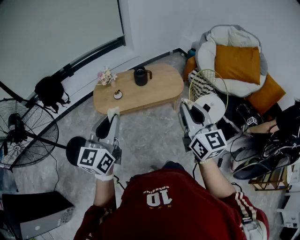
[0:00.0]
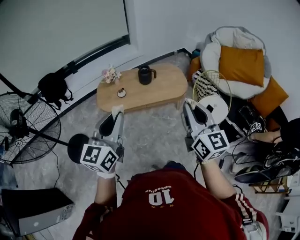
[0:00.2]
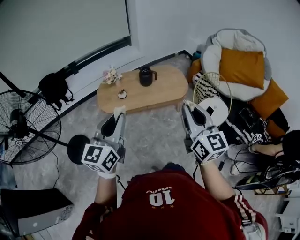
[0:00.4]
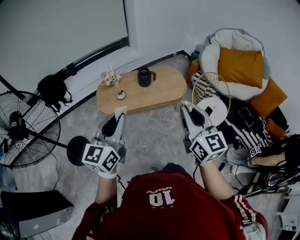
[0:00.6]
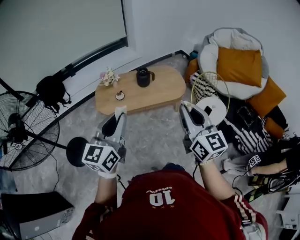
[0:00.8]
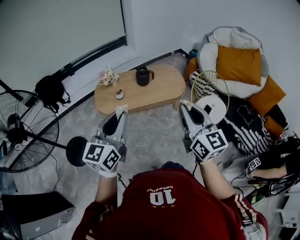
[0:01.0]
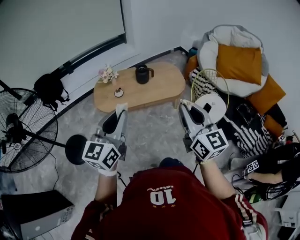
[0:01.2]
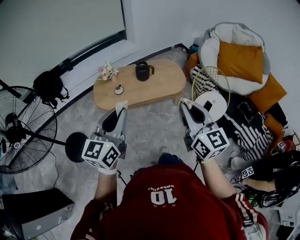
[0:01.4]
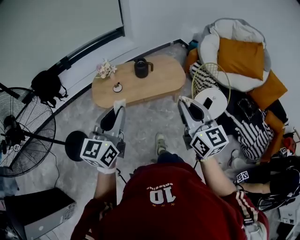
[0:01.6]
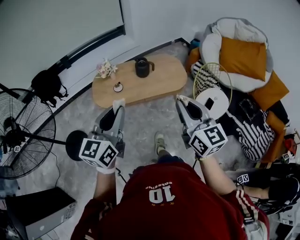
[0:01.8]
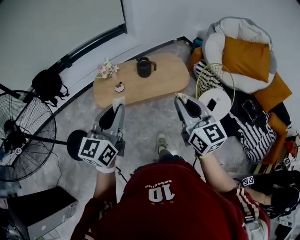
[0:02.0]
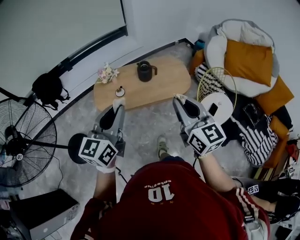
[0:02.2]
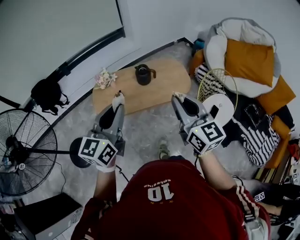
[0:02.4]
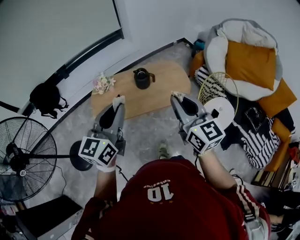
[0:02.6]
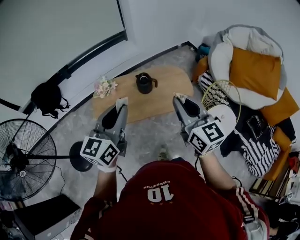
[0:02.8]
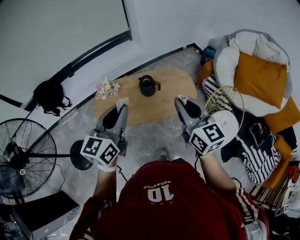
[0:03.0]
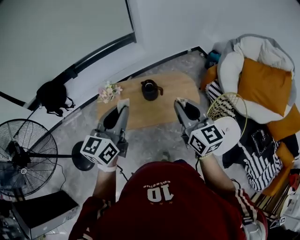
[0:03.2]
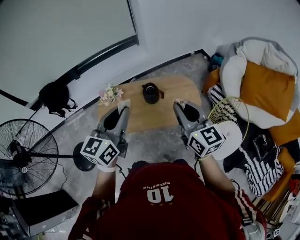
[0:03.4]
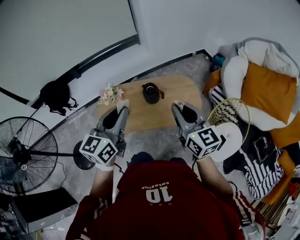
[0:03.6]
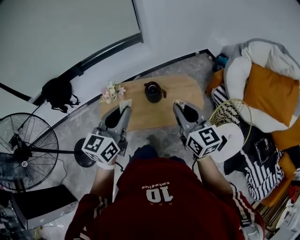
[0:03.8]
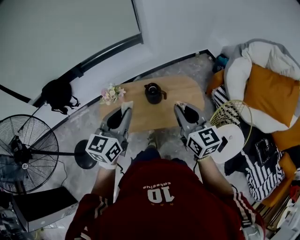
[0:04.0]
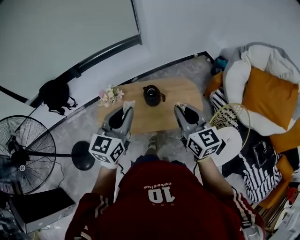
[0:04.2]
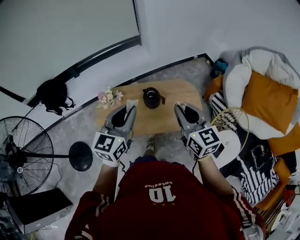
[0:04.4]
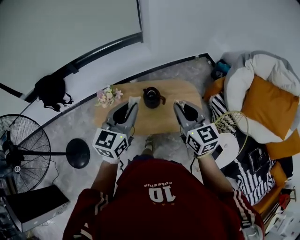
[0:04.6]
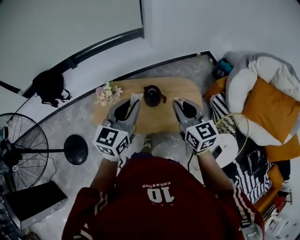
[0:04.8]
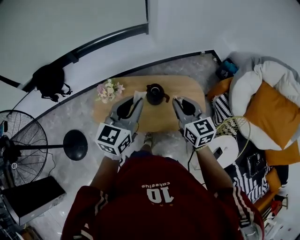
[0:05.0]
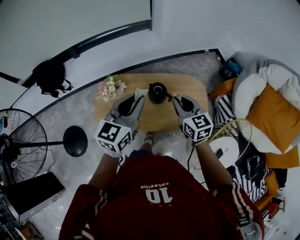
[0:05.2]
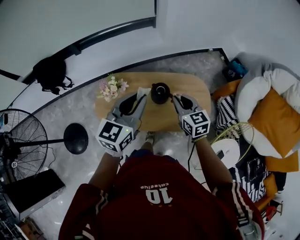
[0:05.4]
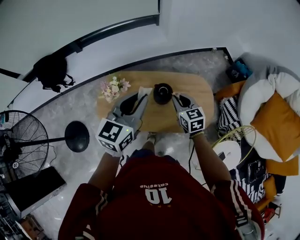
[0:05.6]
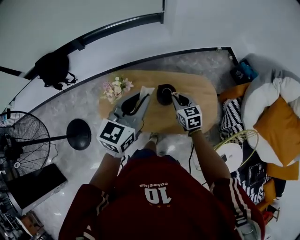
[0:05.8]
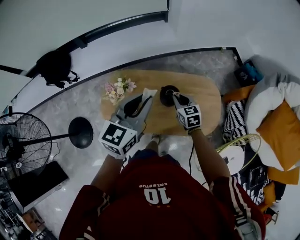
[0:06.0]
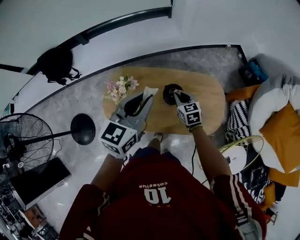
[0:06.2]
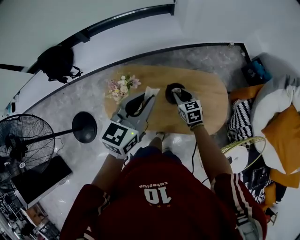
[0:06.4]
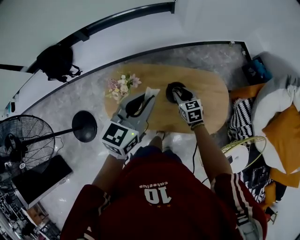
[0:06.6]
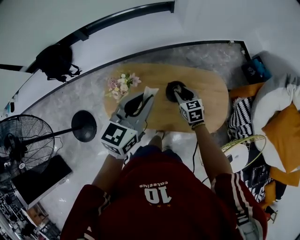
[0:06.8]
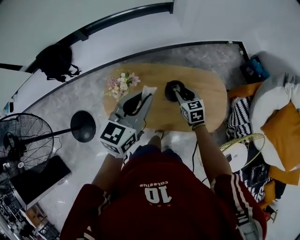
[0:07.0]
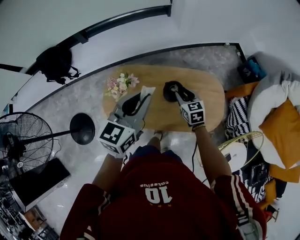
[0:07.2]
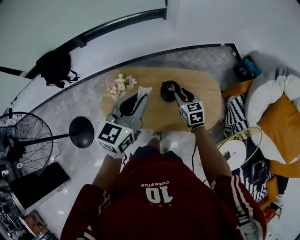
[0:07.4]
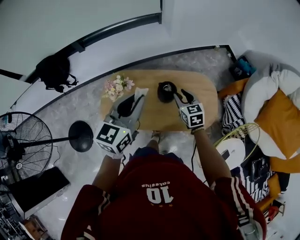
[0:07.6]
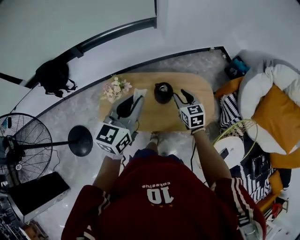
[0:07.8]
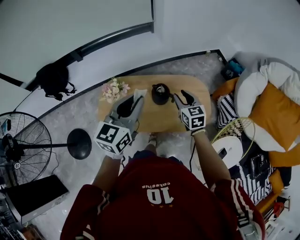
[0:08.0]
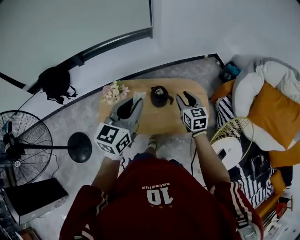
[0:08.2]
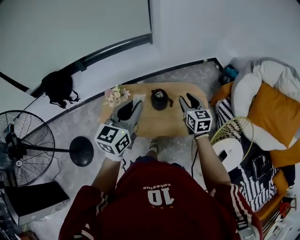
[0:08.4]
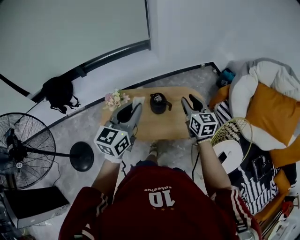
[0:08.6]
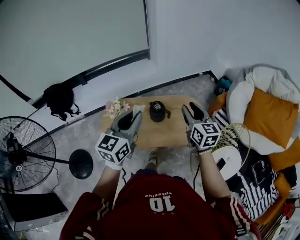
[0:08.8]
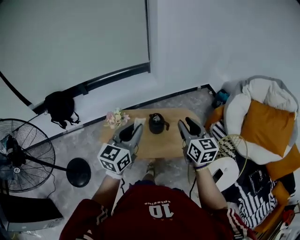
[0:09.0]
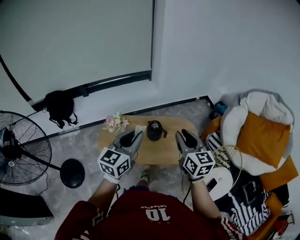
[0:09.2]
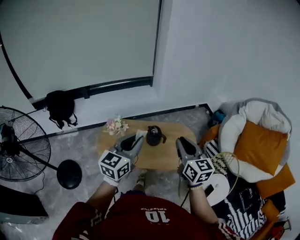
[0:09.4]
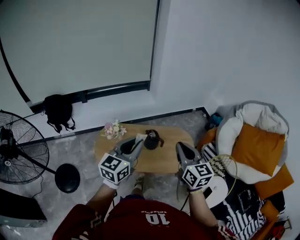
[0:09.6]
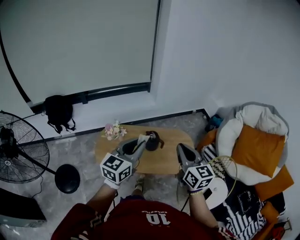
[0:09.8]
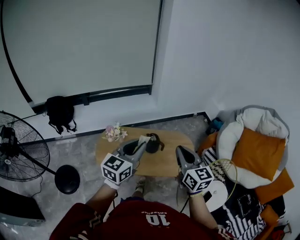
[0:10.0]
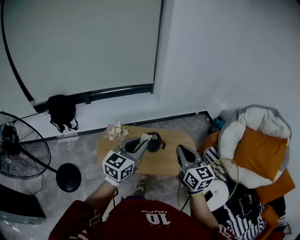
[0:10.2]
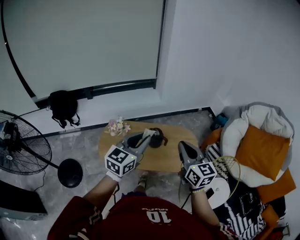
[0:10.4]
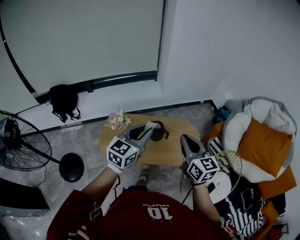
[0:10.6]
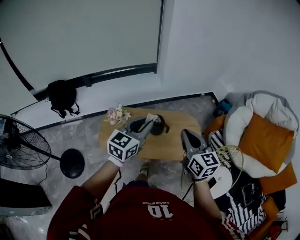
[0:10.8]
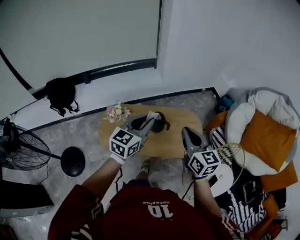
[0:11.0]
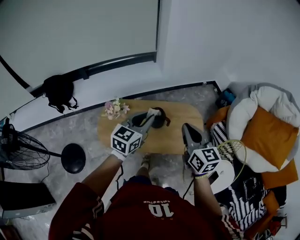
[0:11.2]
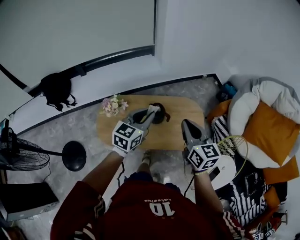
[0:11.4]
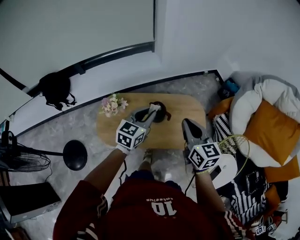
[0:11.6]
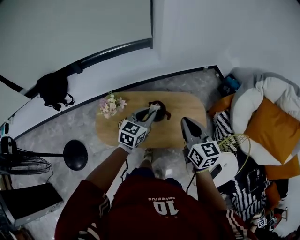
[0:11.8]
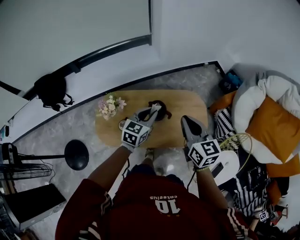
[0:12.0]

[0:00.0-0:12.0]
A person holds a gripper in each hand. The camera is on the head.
0:00.0 to 0:01.6: There are only small adjustments of the grippers.
0:01.6 to 0:03.0: Both grippers travel together forward, about 30 cm.
0:03.0 to 0:04.4: The two grippers go about 10 cm forward.
0:04.4 to 0:06.0: The left gripper shifts approximately 20 cm forward and downward. Meanwhile the right gripper heads downward and forward, covering roughly 40 cm, and turns by approximately 30 degrees.
0:06.0 to 0:07.6: The left gripper changes place by some 5 cm, while the right gripper moves about 5 cm, and opens.
0:07.6 to 0:09.0: The right gripper travels upward and backward by some 30 cm, and rotates roughly 30 degrees. Meanwhile the left gripper moves backward and upward, roughly 15 cm.
0:09.0 to 0:10.4: The right gripper heads backward, covering some 5 cm, and closes up.
0:10.4 to 0:12.0: The right gripper heads forward and downward, covering approximately 20 cm; the left gripper goes some 30 cm downward and forward.

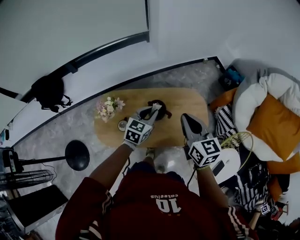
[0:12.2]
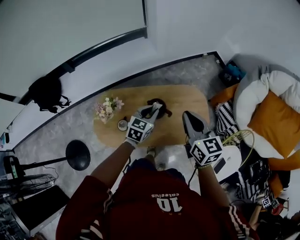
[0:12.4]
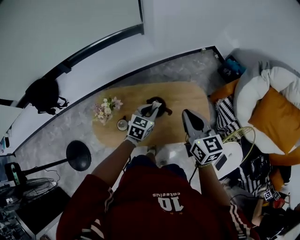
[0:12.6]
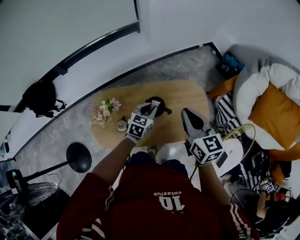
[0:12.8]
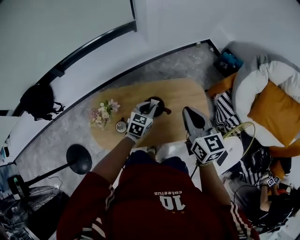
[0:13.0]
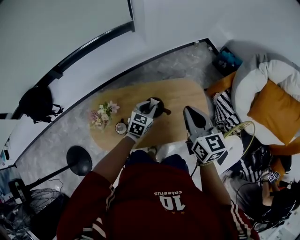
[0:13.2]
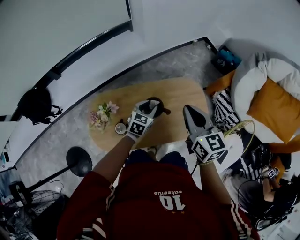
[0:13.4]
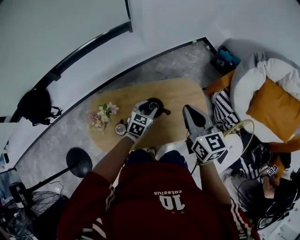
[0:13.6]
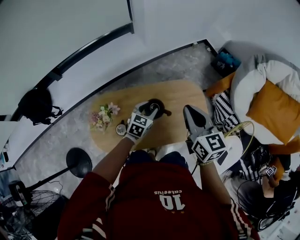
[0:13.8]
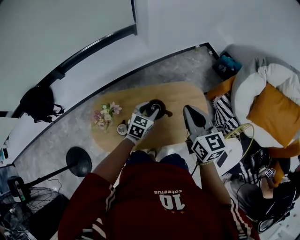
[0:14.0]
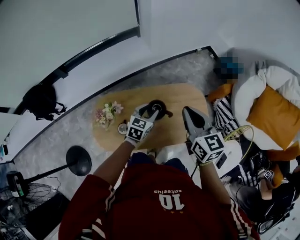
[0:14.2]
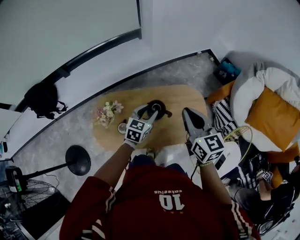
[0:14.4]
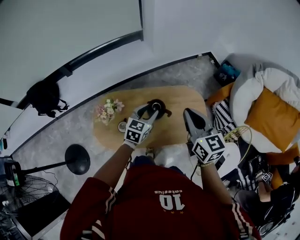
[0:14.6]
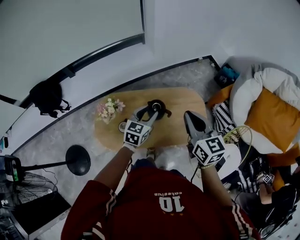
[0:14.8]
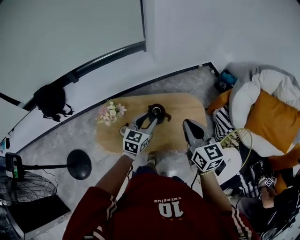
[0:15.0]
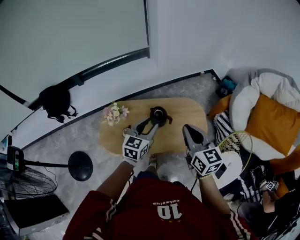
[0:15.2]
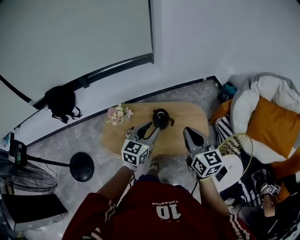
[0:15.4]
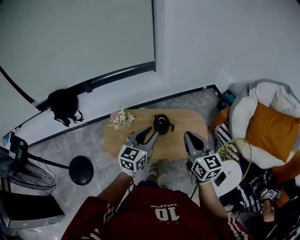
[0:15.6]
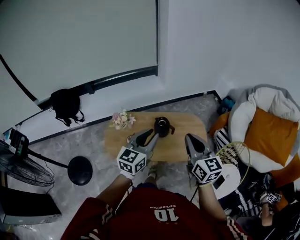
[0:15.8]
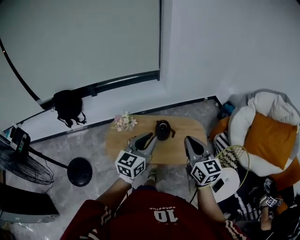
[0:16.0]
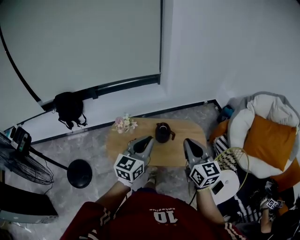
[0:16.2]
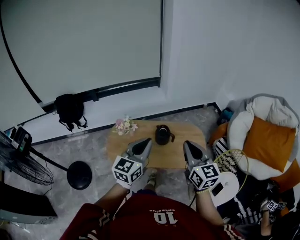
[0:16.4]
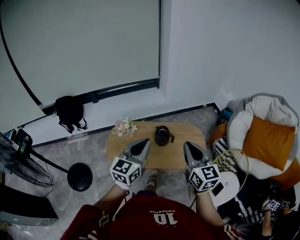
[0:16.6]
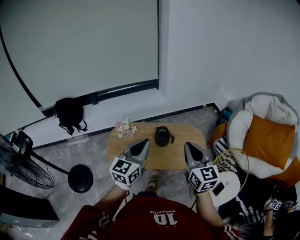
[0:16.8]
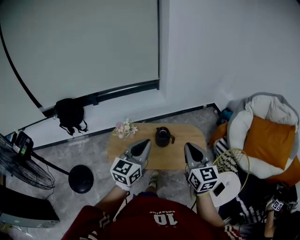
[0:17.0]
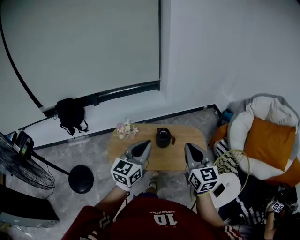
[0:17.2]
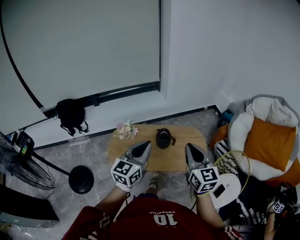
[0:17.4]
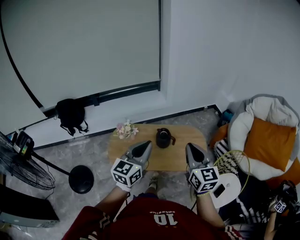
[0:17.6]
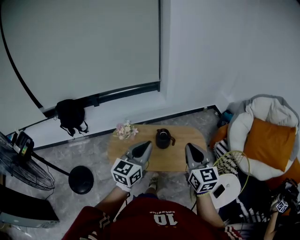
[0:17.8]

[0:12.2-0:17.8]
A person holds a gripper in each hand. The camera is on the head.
0:12.2 to 0:13.6: The right gripper shifts some 5 cm forward. The left gripper shifts some 15 cm downward and forward, and opens up.
0:13.6 to 0:15.0: The right gripper is displaced backward by some 15 cm, while the left gripper is displaced upward and backward by some 20 cm, and changes its angle by some 20 degrees.
0:15.0 to 0:16.4: The left gripper is displaced backward and upward by roughly 25 cm, and closes its fingers; the right gripper travels backward and upward by about 15 cm.
0:16.4 to 0:17.8: There are only small adjustments of the grippers.

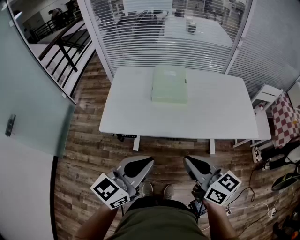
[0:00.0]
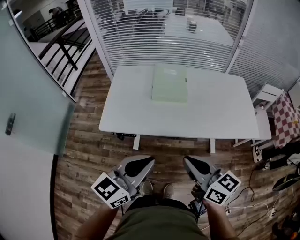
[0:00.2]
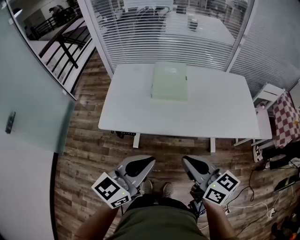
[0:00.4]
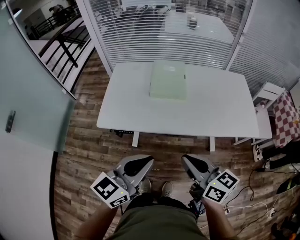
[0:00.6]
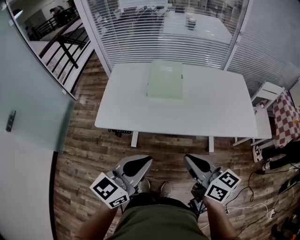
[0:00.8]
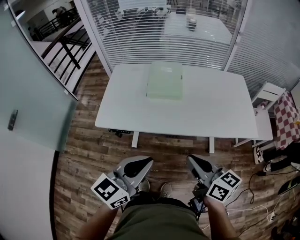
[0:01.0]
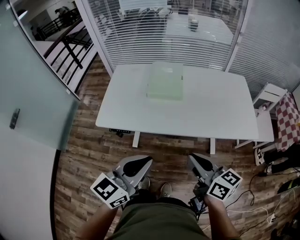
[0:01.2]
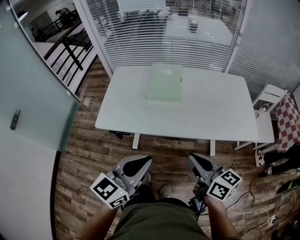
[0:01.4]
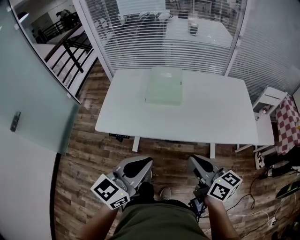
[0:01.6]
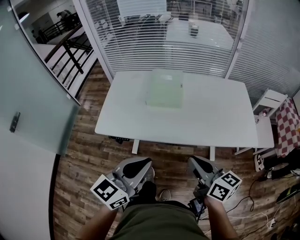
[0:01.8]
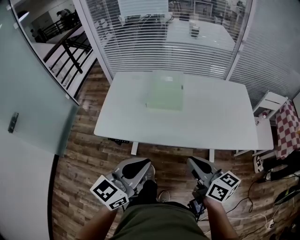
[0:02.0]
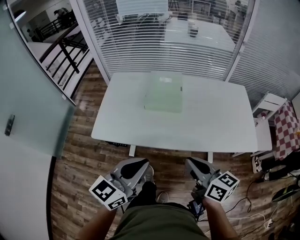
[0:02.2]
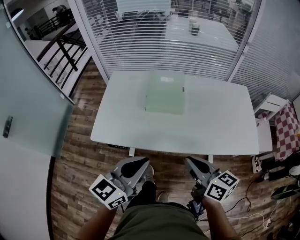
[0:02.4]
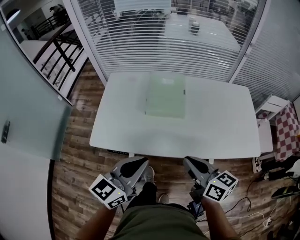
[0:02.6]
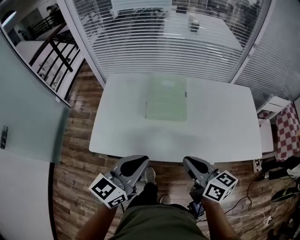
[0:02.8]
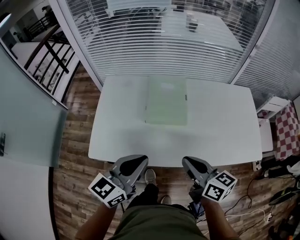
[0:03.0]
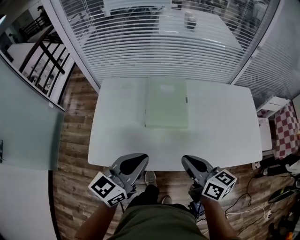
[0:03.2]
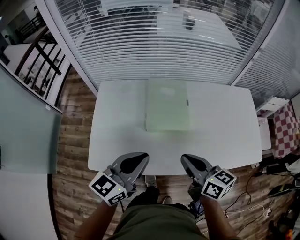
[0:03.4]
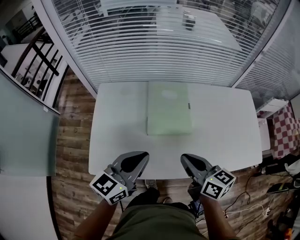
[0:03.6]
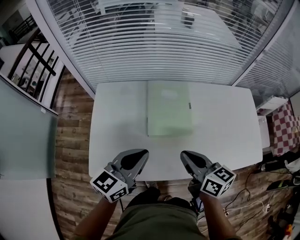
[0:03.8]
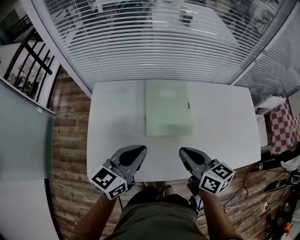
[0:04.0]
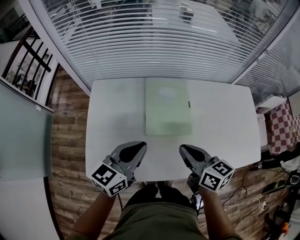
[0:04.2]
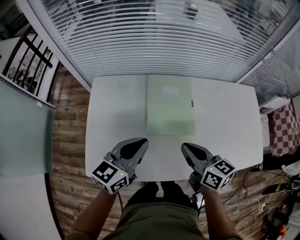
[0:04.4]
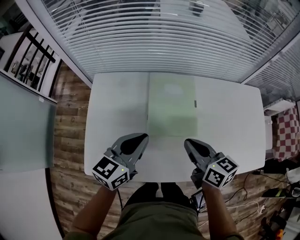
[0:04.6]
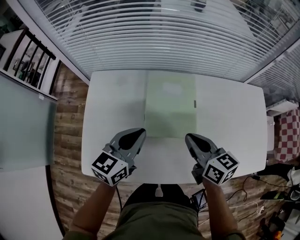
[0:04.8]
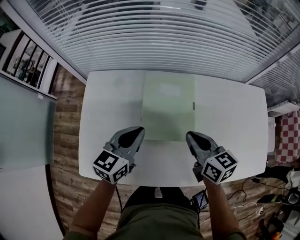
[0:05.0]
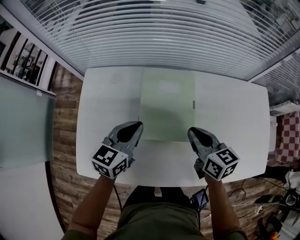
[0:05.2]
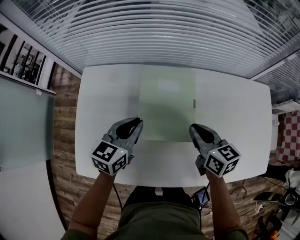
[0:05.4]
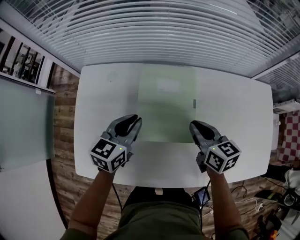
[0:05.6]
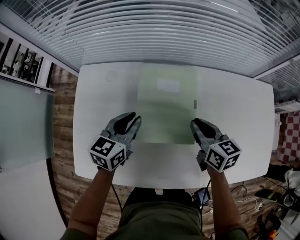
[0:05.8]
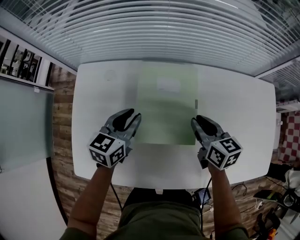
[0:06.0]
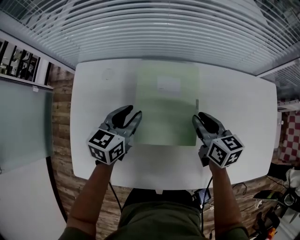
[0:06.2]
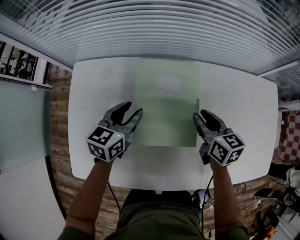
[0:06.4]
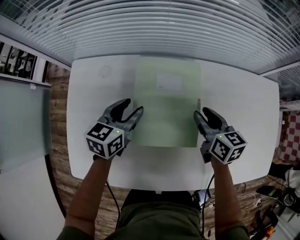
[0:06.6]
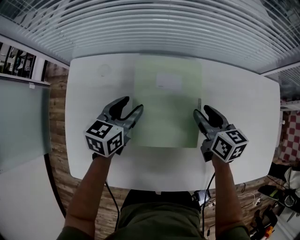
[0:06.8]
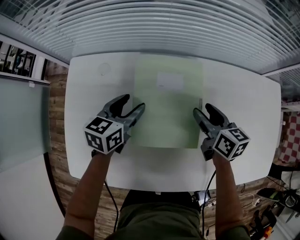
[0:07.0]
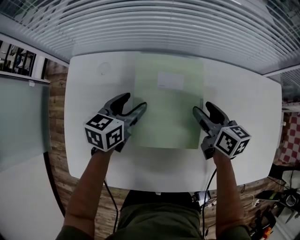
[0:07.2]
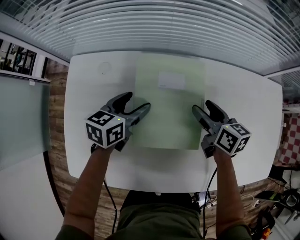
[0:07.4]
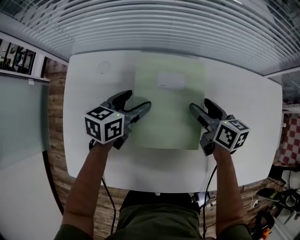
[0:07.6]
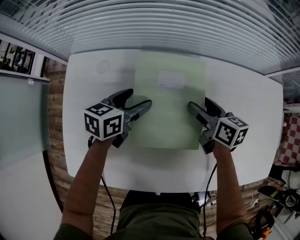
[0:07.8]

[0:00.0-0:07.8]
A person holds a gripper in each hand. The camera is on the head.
0:00.0 to 0:01.6: Both grippers move to the right, some 10 cm.
0:01.6 to 0:03.2: The right gripper is displaced forward and to the left by about 25 cm, while the left gripper shifts some 25 cm forward.
0:03.2 to 0:04.6: The right gripper travels forward by approximately 15 cm, while the left gripper travels forward and downward by roughly 15 cm.
0:04.6 to 0:06.2: The right gripper travels forward, downward and to the right by approximately 20 cm. Meanwhile the left gripper travels downward and forward by some 20 cm.
0:06.2 to 0:07.8: The right gripper heads forward, covering approximately 5 cm, and opens. Meanwhile the left gripper moves about 5 cm, and opens its fingers.
